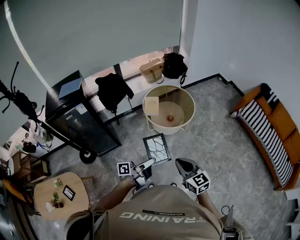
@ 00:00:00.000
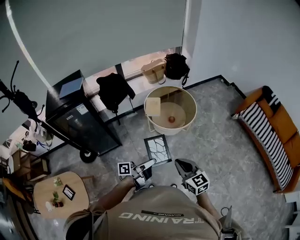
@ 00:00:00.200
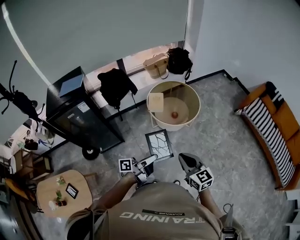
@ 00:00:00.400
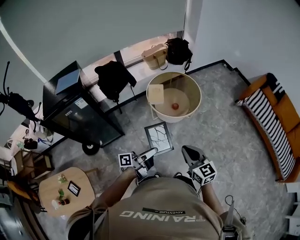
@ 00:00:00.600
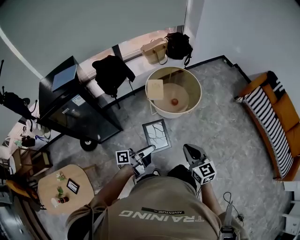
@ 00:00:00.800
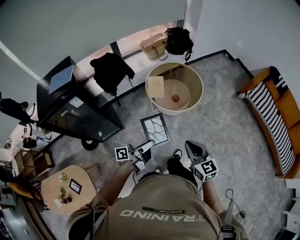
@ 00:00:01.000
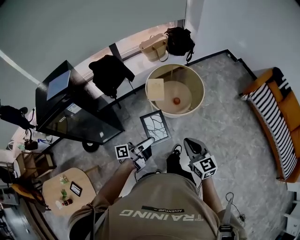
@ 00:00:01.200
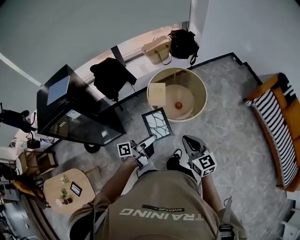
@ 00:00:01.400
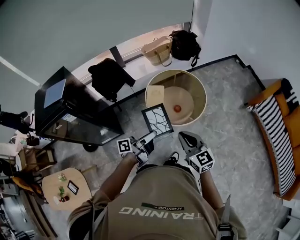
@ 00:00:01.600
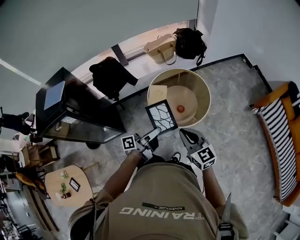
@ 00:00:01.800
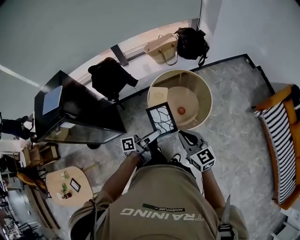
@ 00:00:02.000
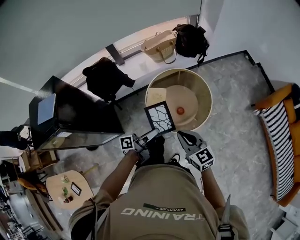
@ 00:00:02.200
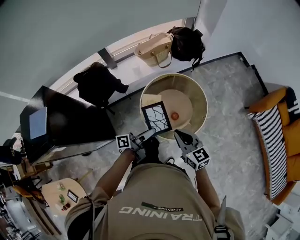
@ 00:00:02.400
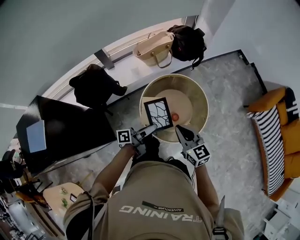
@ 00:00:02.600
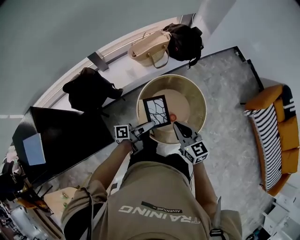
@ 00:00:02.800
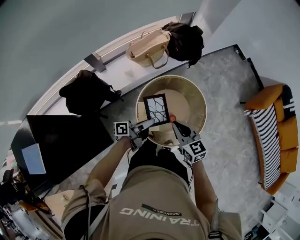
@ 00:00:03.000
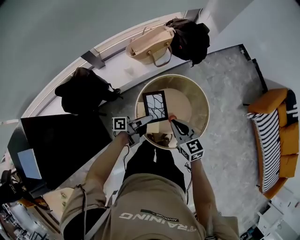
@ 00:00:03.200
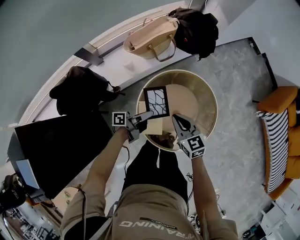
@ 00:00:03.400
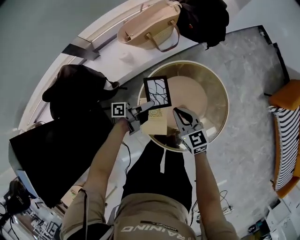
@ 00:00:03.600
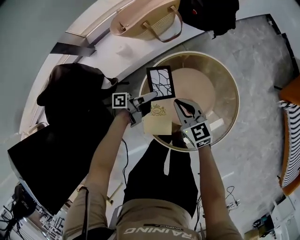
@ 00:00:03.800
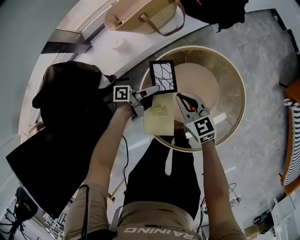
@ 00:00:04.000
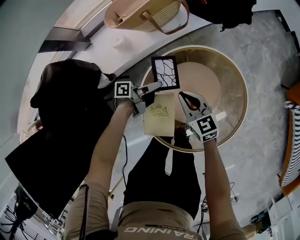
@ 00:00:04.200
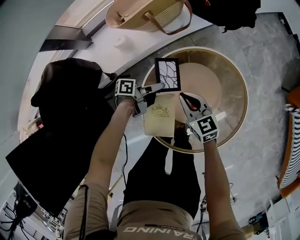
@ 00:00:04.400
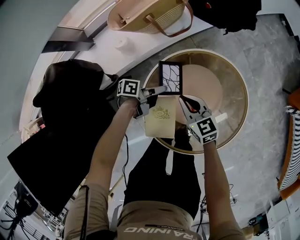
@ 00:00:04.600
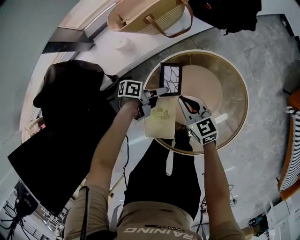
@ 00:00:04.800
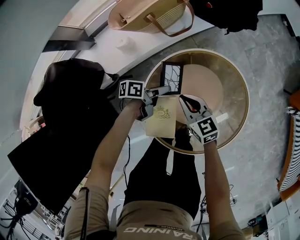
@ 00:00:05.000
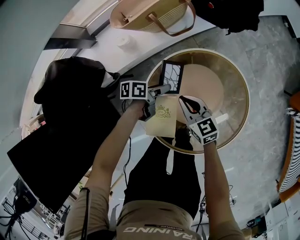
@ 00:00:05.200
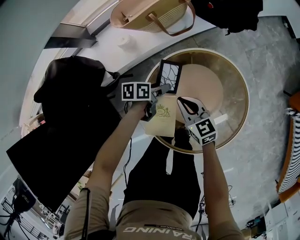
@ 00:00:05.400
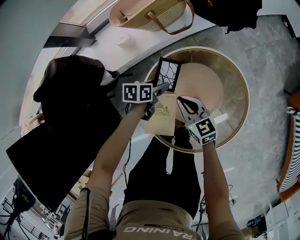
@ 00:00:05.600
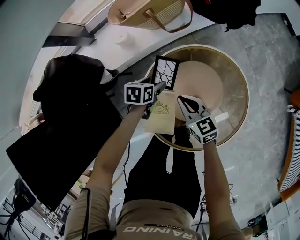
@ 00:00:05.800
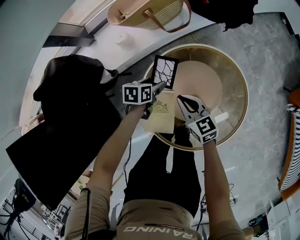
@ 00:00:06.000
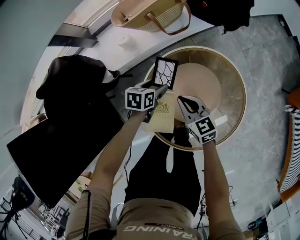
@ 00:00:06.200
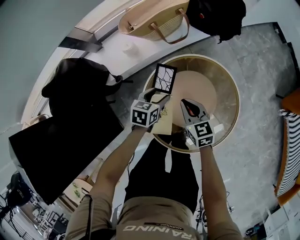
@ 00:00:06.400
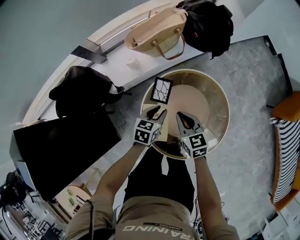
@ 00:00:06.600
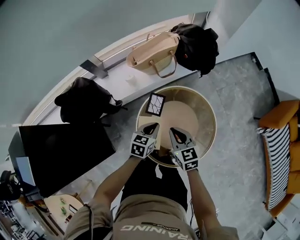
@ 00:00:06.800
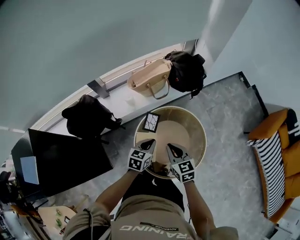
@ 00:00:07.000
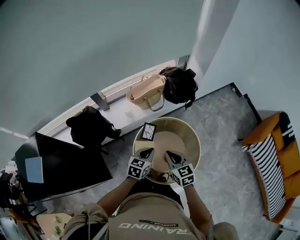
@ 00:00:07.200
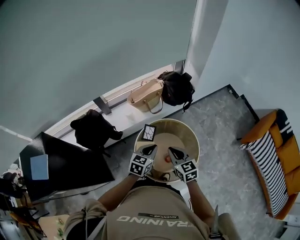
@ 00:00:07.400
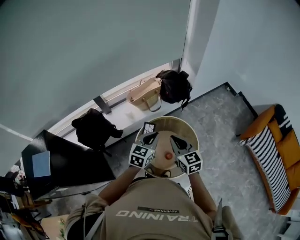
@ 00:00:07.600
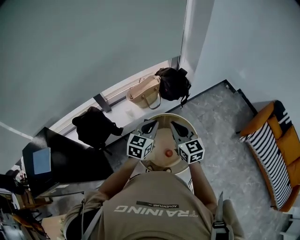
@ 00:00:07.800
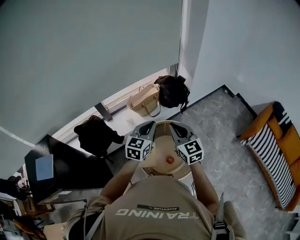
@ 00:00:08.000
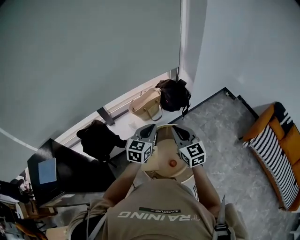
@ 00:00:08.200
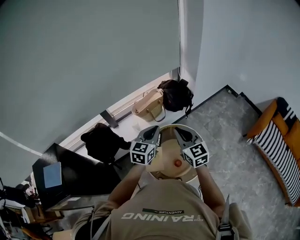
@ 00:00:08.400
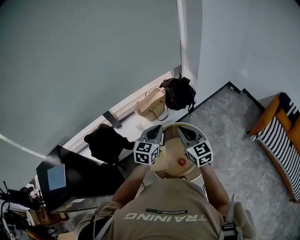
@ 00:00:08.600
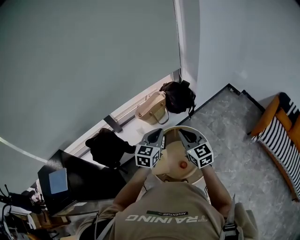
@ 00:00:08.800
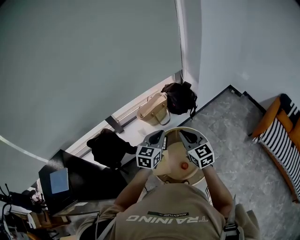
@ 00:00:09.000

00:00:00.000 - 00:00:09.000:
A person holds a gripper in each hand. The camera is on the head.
00:00:00.000 - 00:00:01.600: The right gripper shifts by roughly 30 cm.
00:00:01.600 - 00:00:03.000: The right gripper moves some 35 cm.
00:00:06.000 - 00:00:07.600: The right gripper travels upward by some 40 cm, and changes its angle by approximately 20 degrees.
00:00:07.600 - 00:00:09.000: The right gripper goes some 5 cm upward.

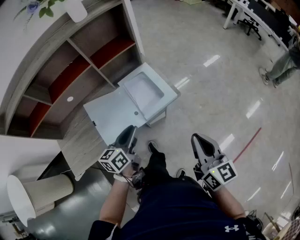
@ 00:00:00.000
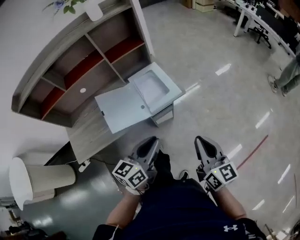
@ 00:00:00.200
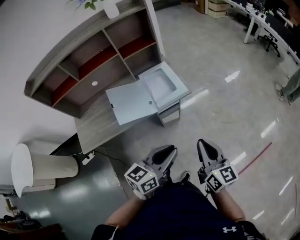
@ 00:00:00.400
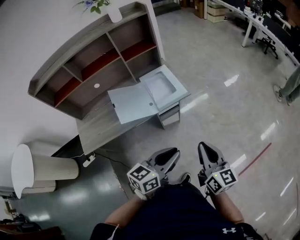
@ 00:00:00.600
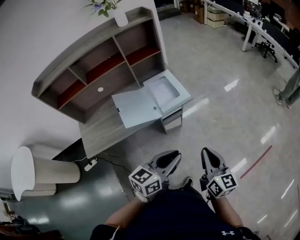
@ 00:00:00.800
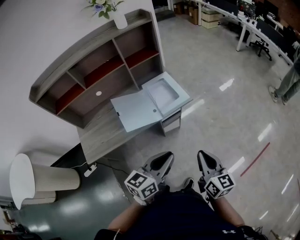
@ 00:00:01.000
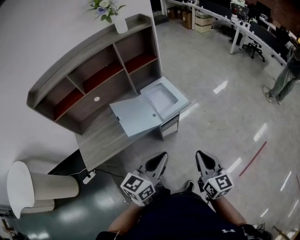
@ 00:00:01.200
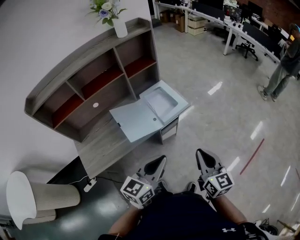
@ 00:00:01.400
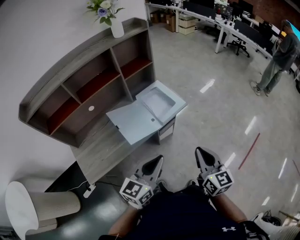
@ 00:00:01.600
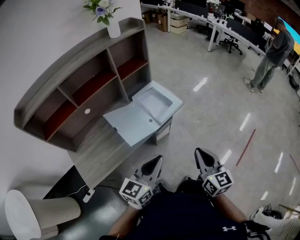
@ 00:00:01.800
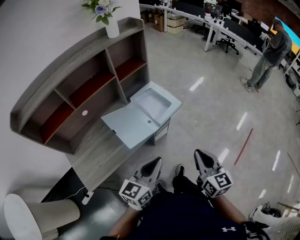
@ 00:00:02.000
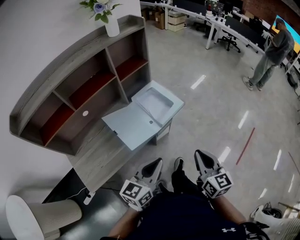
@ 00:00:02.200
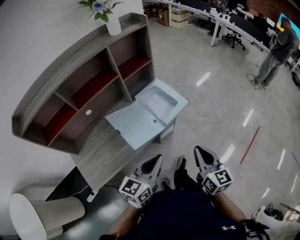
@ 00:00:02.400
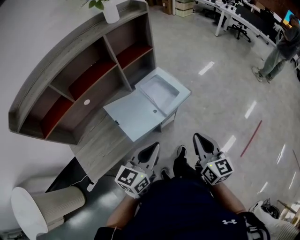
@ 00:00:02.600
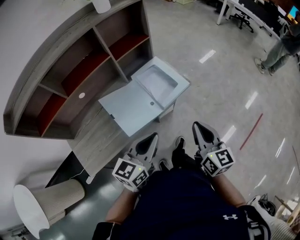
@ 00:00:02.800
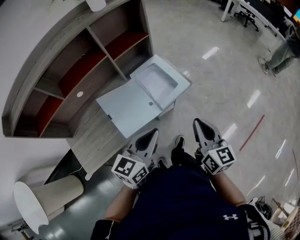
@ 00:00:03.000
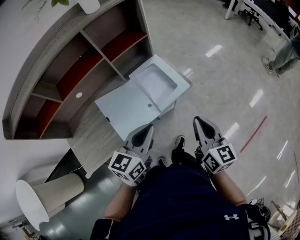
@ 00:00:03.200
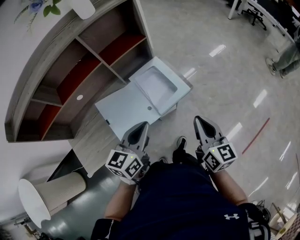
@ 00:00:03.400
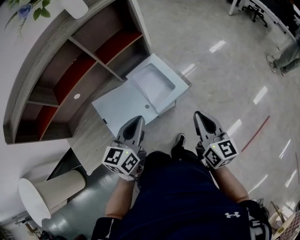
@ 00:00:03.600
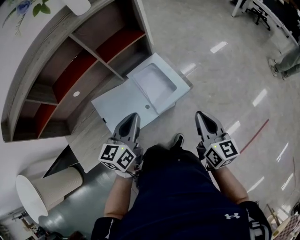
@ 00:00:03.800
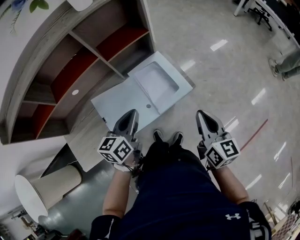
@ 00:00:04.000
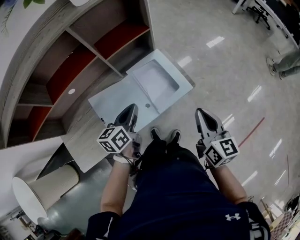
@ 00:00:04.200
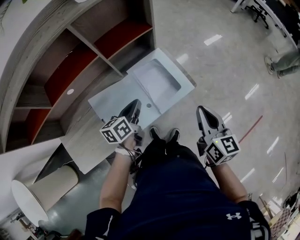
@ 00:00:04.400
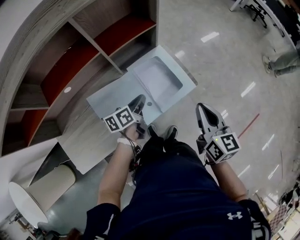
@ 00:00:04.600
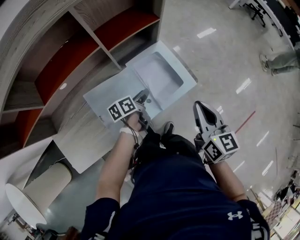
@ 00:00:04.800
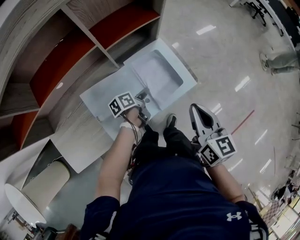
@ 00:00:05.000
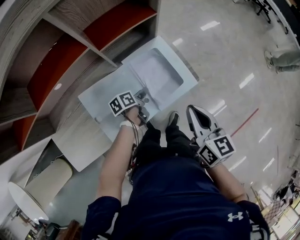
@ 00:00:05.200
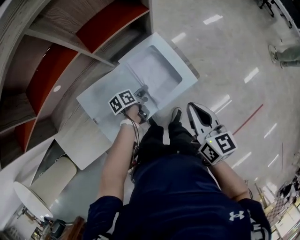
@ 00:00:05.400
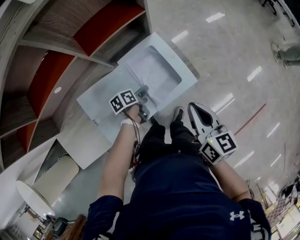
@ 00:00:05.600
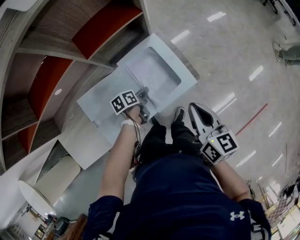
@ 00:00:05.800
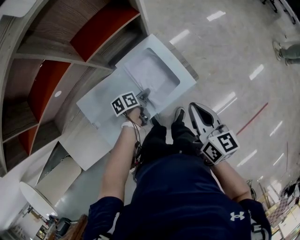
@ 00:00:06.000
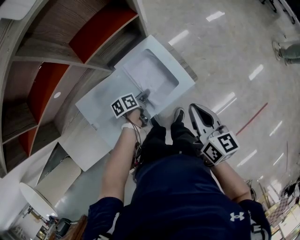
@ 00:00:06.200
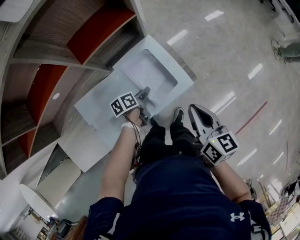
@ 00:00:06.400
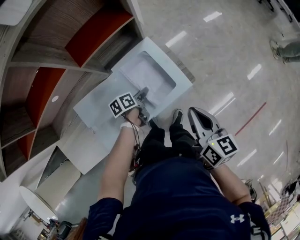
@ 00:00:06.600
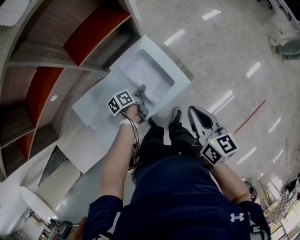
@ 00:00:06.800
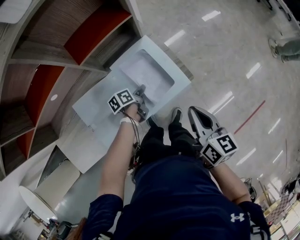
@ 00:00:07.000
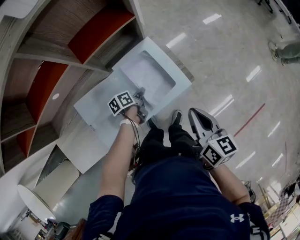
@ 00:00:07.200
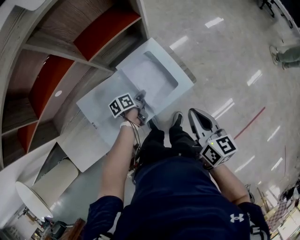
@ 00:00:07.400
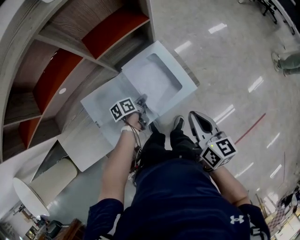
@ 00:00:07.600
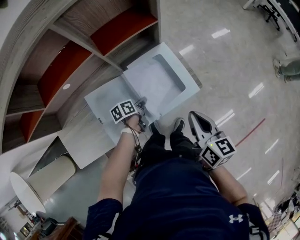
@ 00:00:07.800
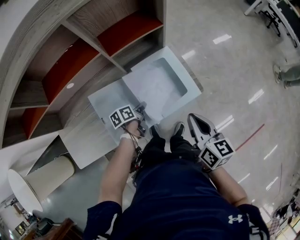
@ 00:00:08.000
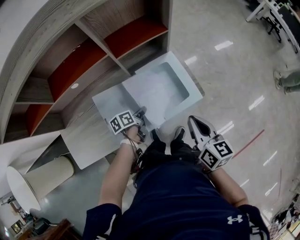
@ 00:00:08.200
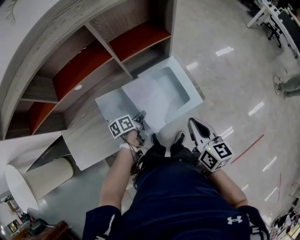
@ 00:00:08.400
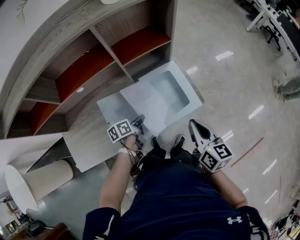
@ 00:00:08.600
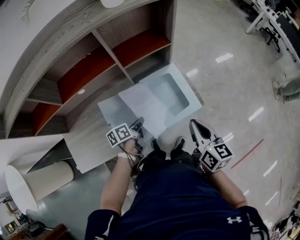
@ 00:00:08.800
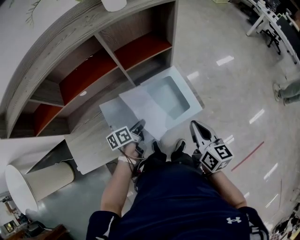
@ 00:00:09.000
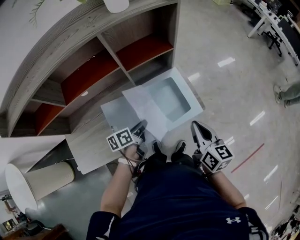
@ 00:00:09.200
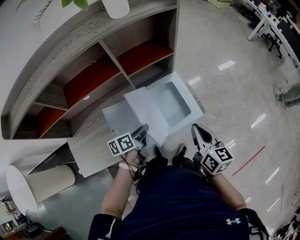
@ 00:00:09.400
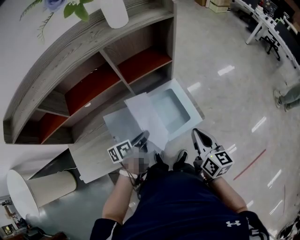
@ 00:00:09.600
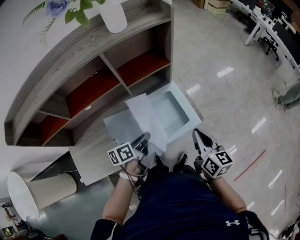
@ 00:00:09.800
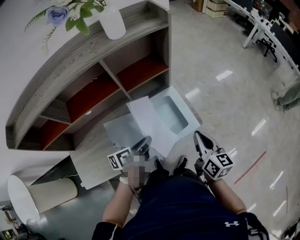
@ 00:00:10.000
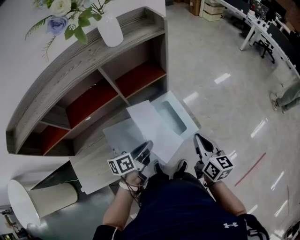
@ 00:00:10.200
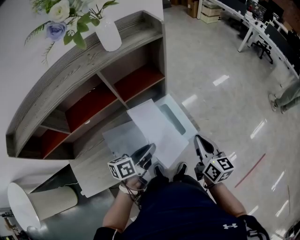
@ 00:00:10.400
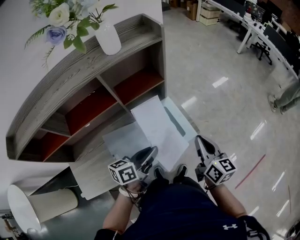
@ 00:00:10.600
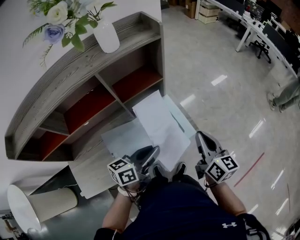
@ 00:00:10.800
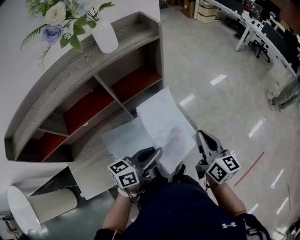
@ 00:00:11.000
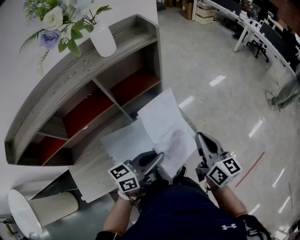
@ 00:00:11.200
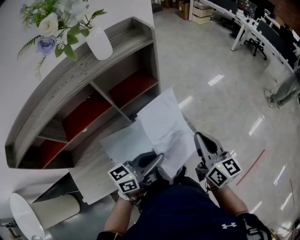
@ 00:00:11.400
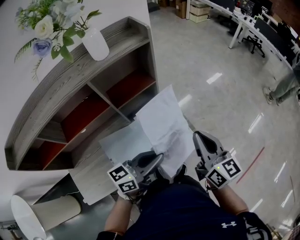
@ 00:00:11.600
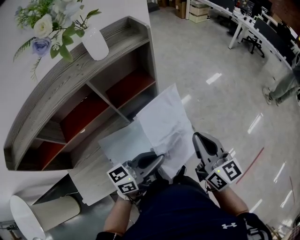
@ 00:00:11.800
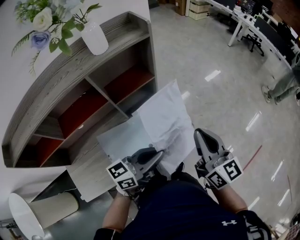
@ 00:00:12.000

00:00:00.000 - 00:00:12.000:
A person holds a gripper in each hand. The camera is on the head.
00:00:00.000 - 00:00:01.600: The right gripper shifts roughly 20 cm backward and to the left; the left gripper travels backward and upward by roughly 25 cm, turns by about 30 degrees, and closes.
00:00:01.600 - 00:00:03.000: The two grippers go some 15 cm forward.
00:00:03.000 - 00:00:04.400: The right gripper moves forward, approximately 15 cm. Meanwhile the left gripper goes approximately 25 cm forward and downward, and rotates some 30 degrees.
00:00:04.400 - 00:00:06.000: The right gripper travels downward by roughly 5 cm. Meanwhile the left gripper shifts approximately 20 cm downward, swivels roughly 30 degrees, and opens up.
00:00:06.000 - 00:00:07.600: The left gripper closes its fingers.
00:00:07.600 - 00:00:09.000: The right gripper changes place by roughly 5 cm; the left gripper moves upward, backward and to the left, about 15 cm.
00:00:09.000 - 00:00:10.400: The left gripper heads upward and to the right, covering some 15 cm, and swivels about 20 degrees. The right gripper ends up approximately 5 cm from where it was.
00:00:10.400 - 00:00:12.000: The right gripper goes about 10 cm upward, while the left gripper goes approximately 10 cm upward and to the right, and turns by roughly 40 degrees.

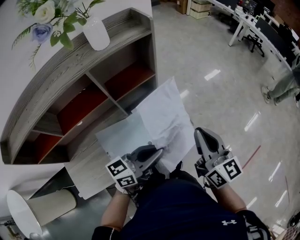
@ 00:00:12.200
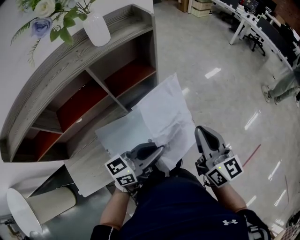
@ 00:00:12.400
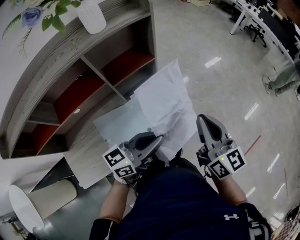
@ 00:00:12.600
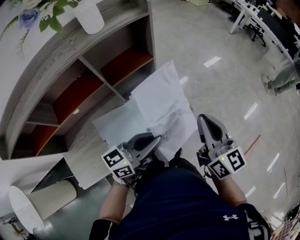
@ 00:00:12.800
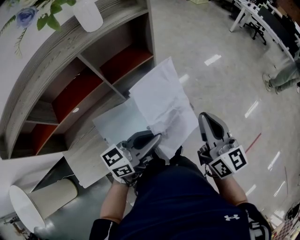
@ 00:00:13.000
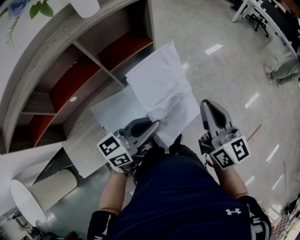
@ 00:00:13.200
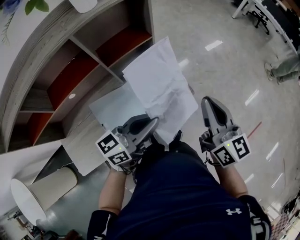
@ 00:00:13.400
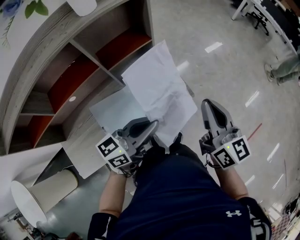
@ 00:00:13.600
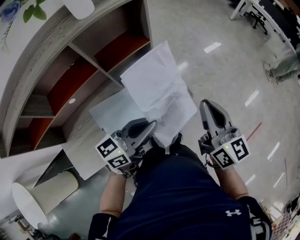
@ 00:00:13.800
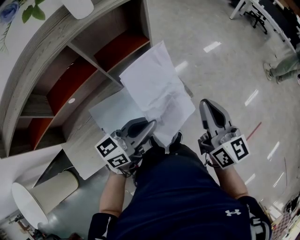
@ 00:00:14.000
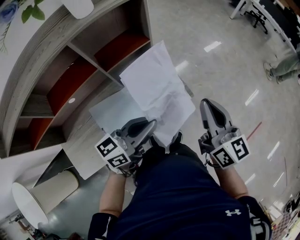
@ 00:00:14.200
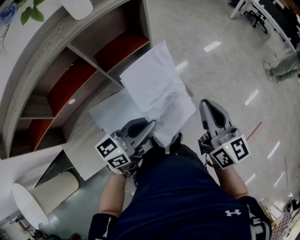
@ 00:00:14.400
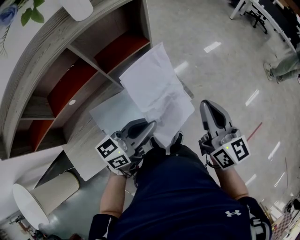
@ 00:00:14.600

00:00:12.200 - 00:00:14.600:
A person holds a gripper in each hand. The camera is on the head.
00:00:12.200 - 00:00:13.400: The grippers stay close to where they were, moving slightly.
00:00:13.400 - 00:00:14.600: Both grippers stay put.
